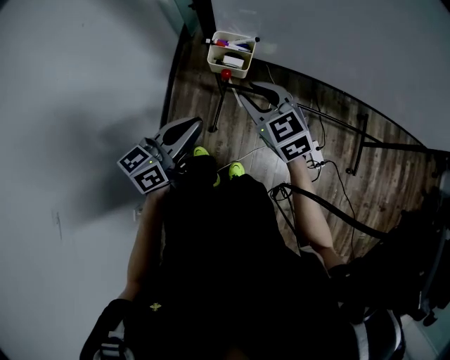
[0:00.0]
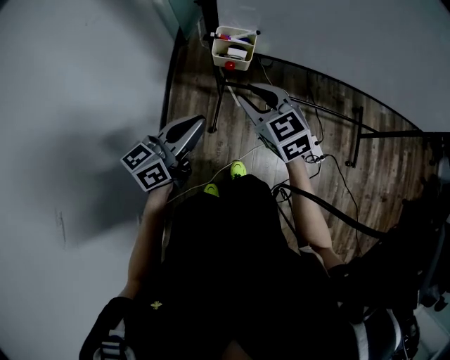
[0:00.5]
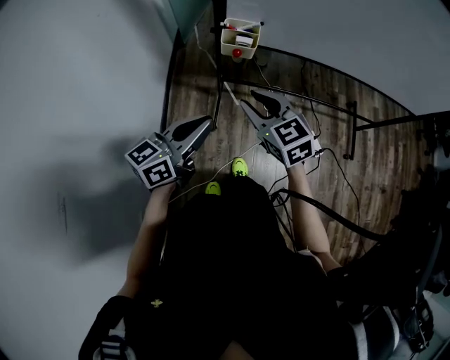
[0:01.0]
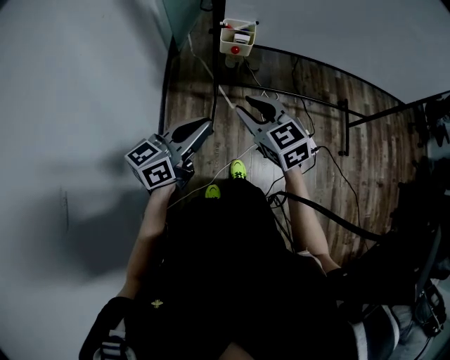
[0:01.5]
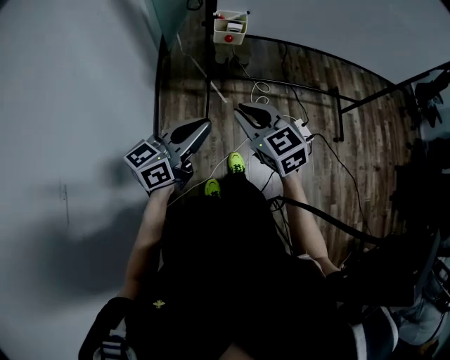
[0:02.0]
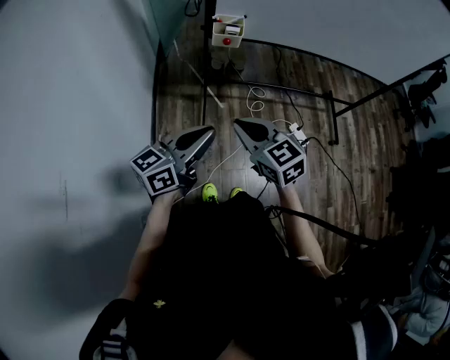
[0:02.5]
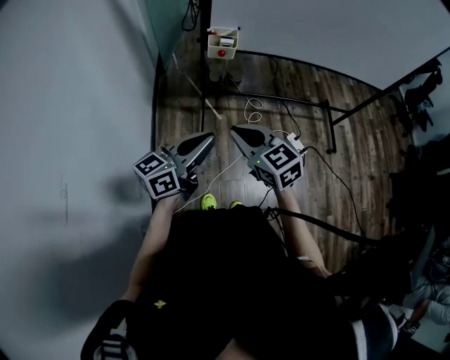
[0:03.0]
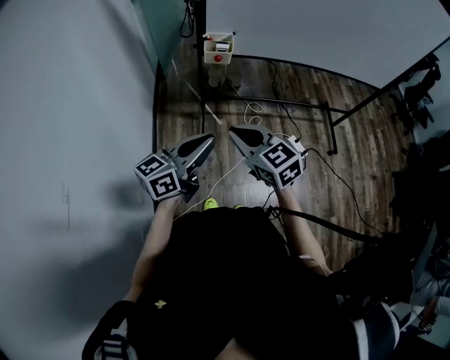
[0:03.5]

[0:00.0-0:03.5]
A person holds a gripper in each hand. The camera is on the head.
0.0 to 2.0 s: Both grippers travel together backward, some 25 cm.
2.0 to 3.5 s: The right gripper ends up approximately 5 cm from where it was.

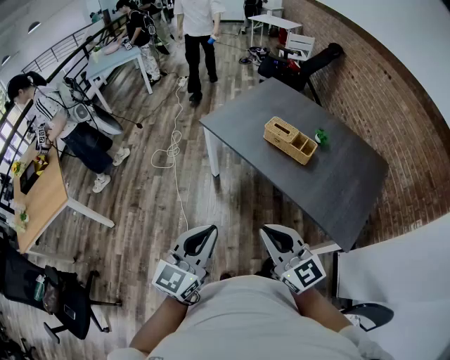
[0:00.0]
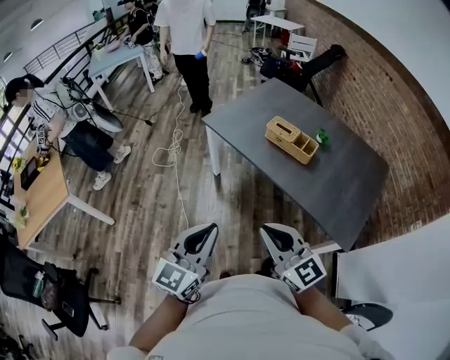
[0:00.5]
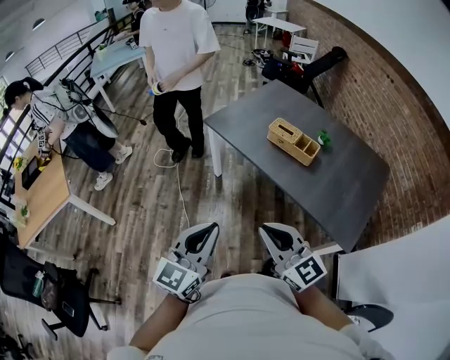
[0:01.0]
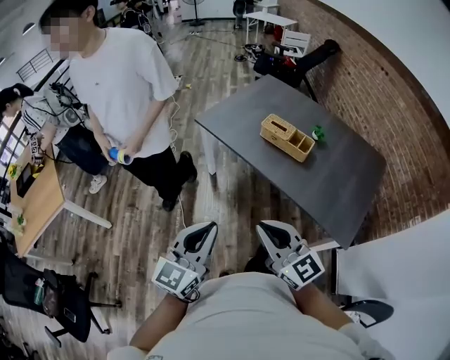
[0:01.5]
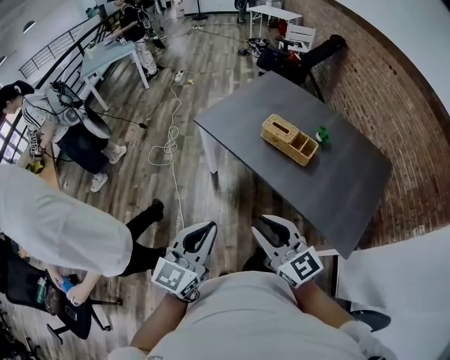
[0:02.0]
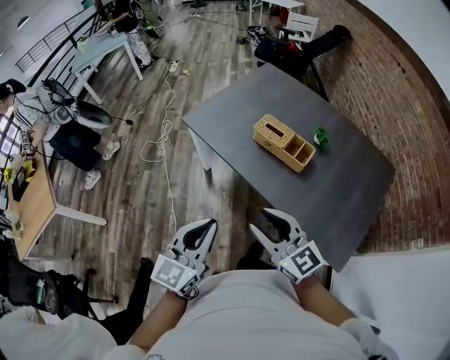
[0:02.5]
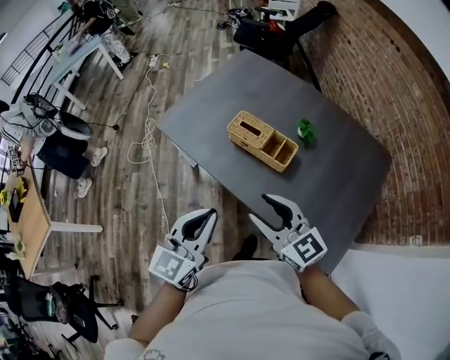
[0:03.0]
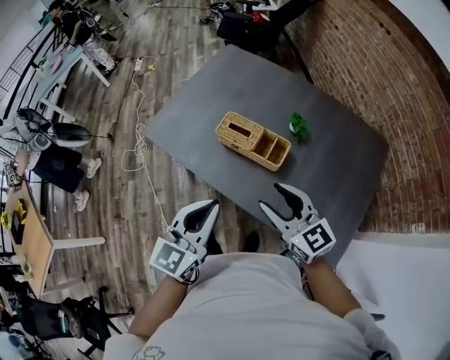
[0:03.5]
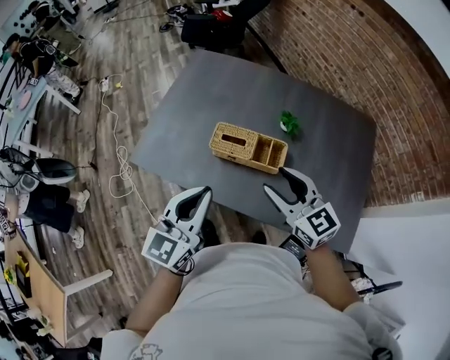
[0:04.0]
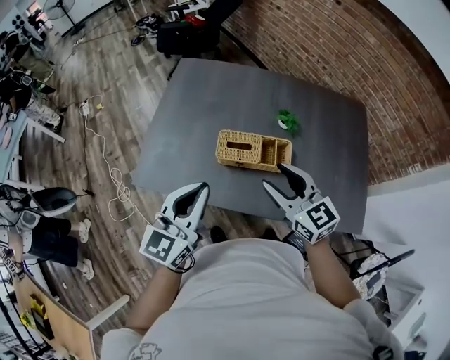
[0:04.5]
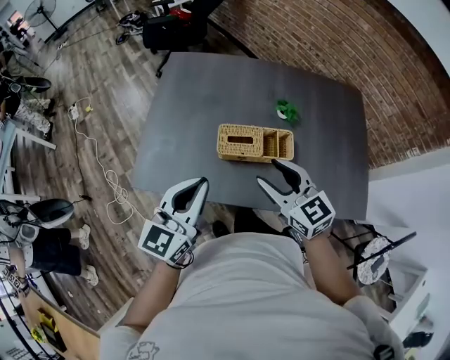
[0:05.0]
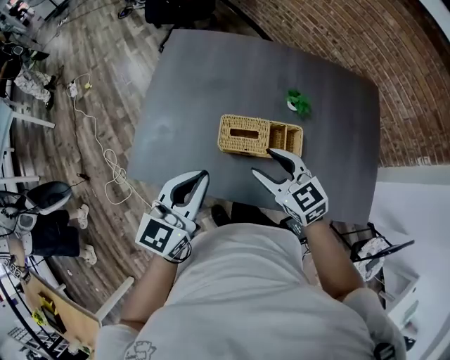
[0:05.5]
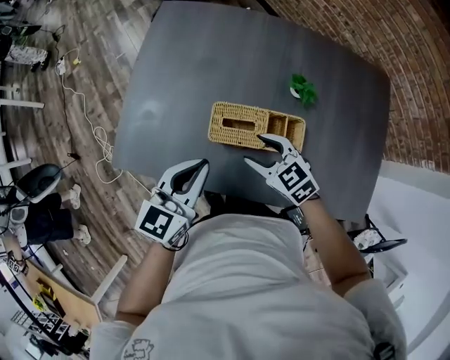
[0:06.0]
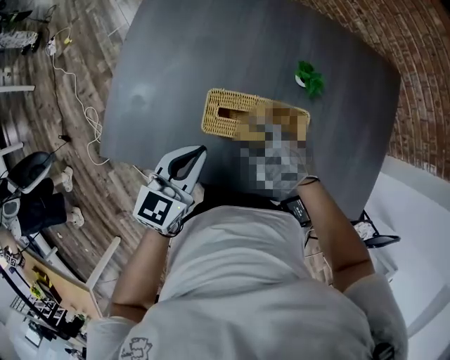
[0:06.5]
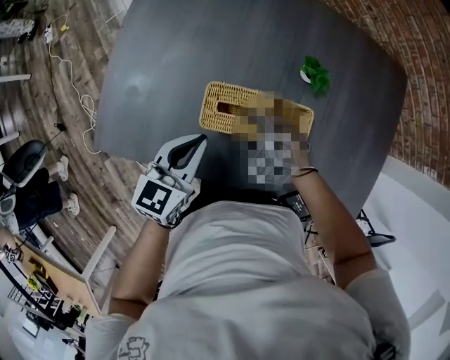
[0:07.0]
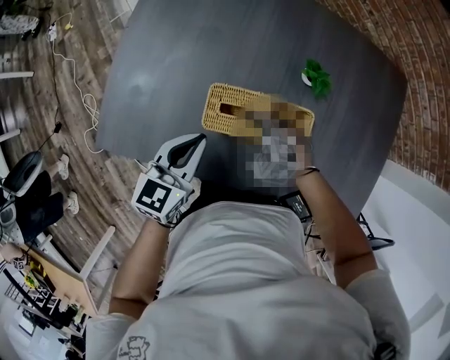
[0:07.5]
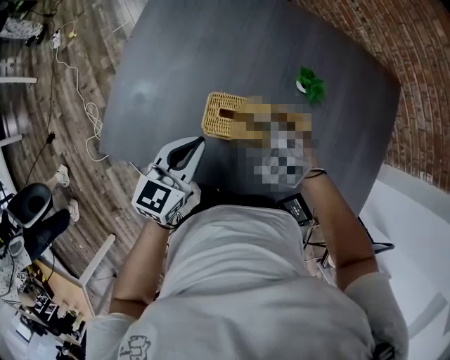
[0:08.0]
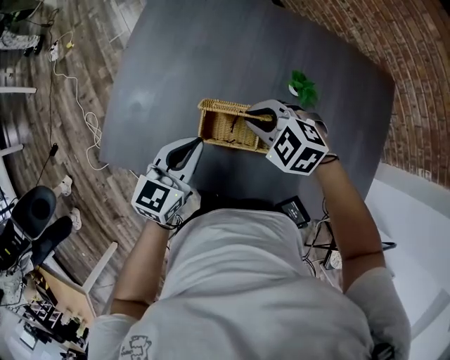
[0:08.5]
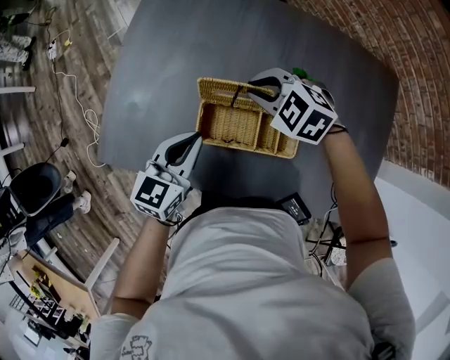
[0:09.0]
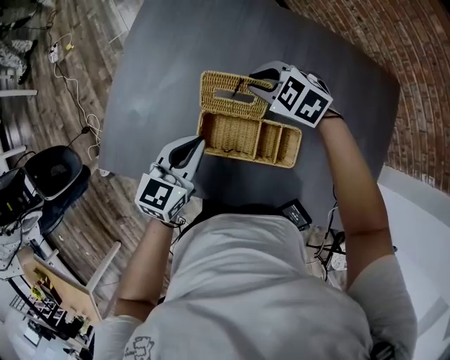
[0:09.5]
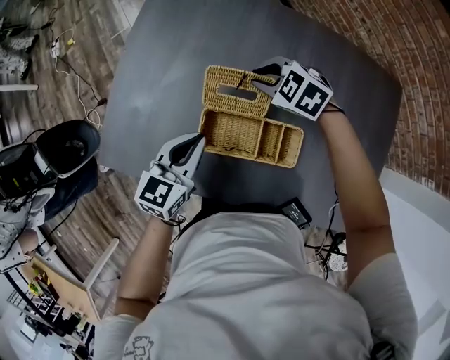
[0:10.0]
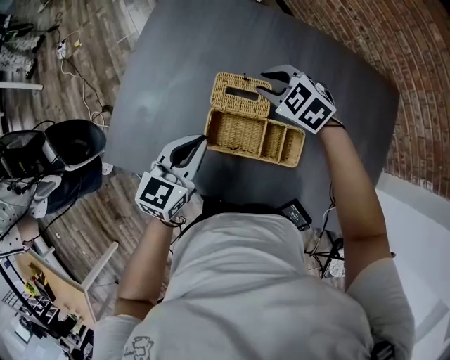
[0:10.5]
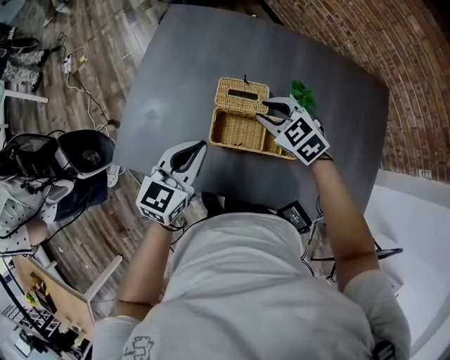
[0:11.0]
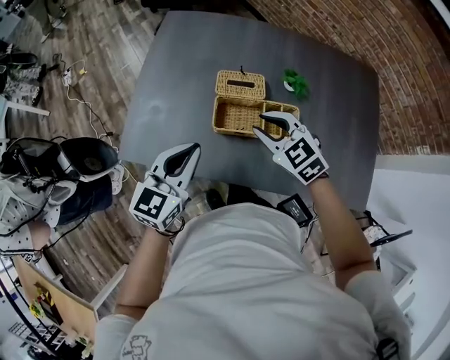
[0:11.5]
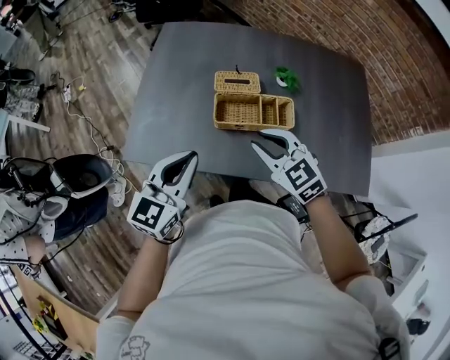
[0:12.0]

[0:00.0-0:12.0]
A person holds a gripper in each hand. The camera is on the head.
0.0 to 2.0 s: Both grippers move forward, roughly 5 cm. The right gripper opens.
2.0 to 4.0 s: The left gripper moves forward, about 35 cm, and rotates some 20 degrees; the right gripper travels forward and to the right by approximately 40 cm, rotates about 30 degrees, and opens its fingers.
4.0 to 6.0 s: The left gripper goes approximately 20 cm forward and downward, while the right gripper travels downward, forward and to the left by some 25 cm, and changes its angle by about 30 degrees.
6.0 to 8.0 s: The right gripper rotates approximately 30 degrees; the left gripper heads downward, covering approximately 5 cm.
8.0 to 10.0 s: The left gripper shifts by approximately 5 cm, while the right gripper is displaced forward and to the right by some 20 cm, and closes.
10.0 to 12.0 s: The left gripper is displaced backward, upward and to the left by roughly 25 cm. The right gripper moves backward and upward, roughly 30 cm, and rotates some 40 degrees.

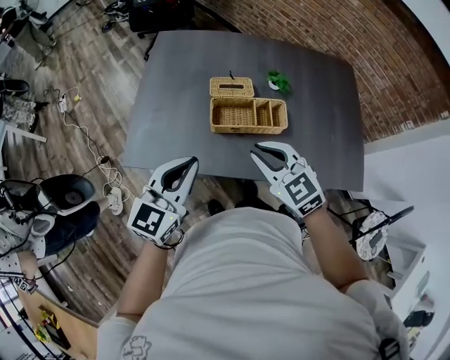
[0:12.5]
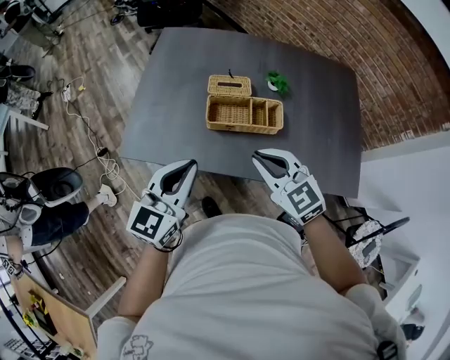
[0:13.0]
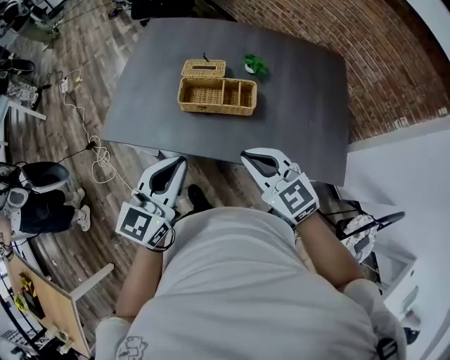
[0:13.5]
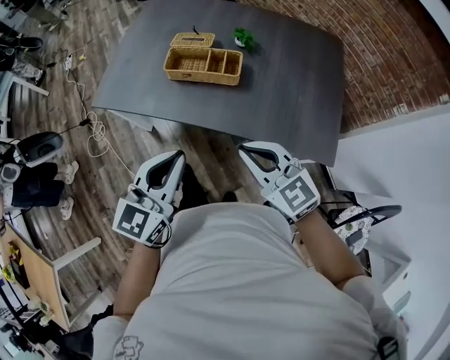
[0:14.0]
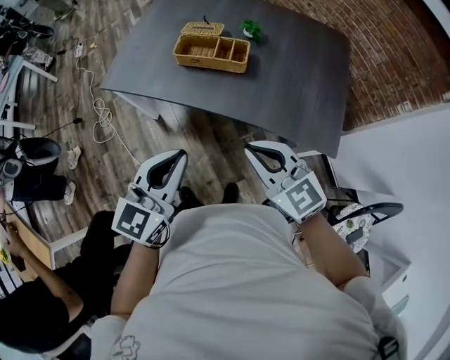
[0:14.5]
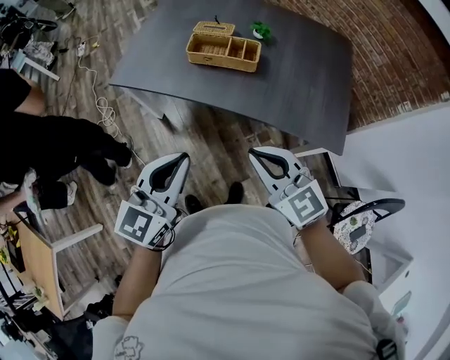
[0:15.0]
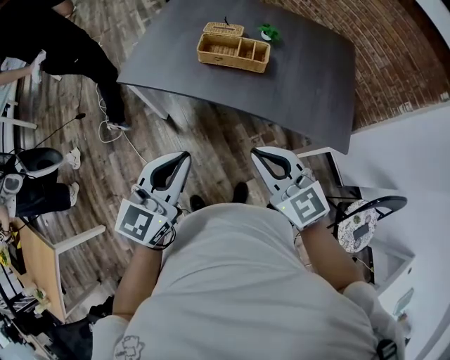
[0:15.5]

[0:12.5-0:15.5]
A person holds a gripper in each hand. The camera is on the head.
12.5 to 14.0 s: The grippers both shift backward and to the right by roughly 25 cm.
14.0 to 15.5 s: Both grippers move to the left and backward, about 15 cm.

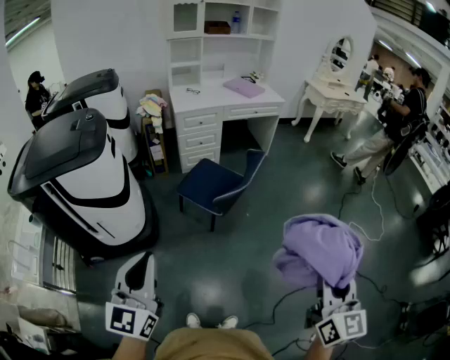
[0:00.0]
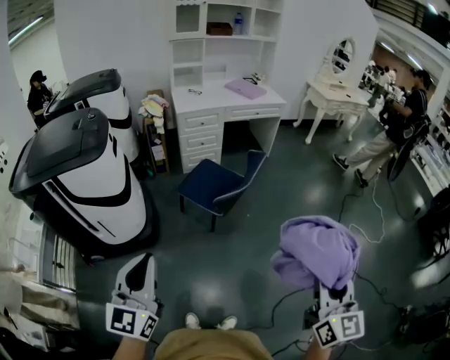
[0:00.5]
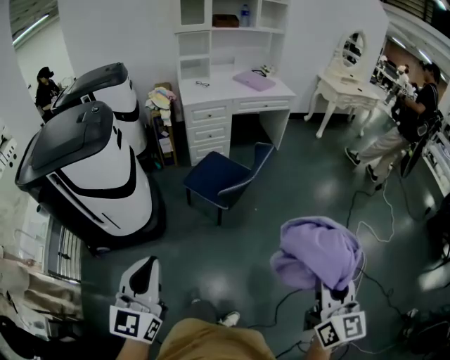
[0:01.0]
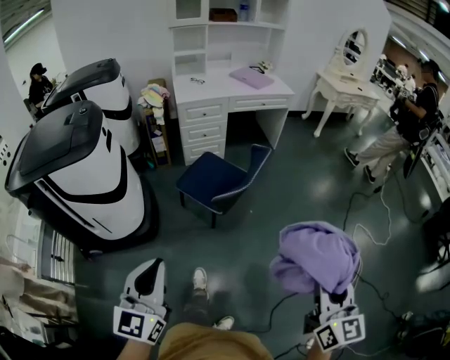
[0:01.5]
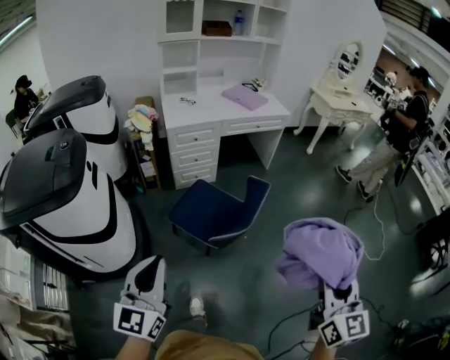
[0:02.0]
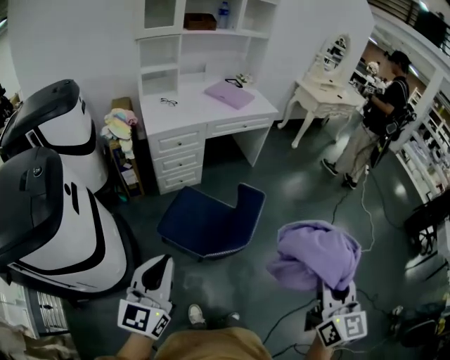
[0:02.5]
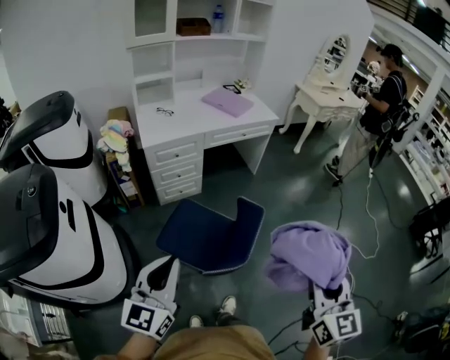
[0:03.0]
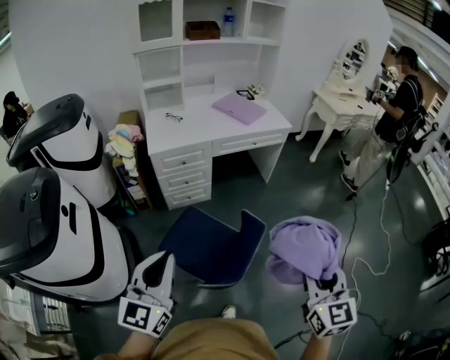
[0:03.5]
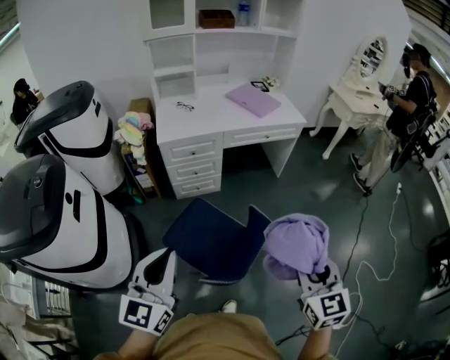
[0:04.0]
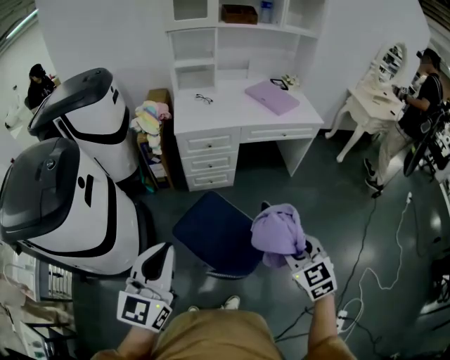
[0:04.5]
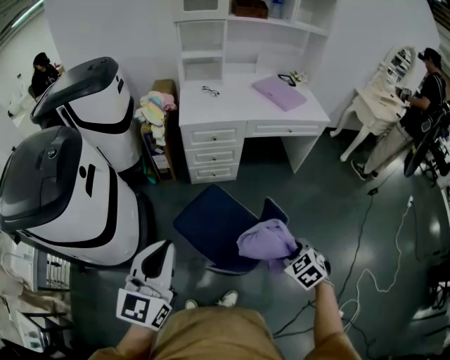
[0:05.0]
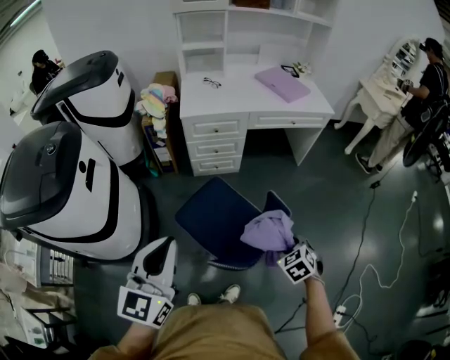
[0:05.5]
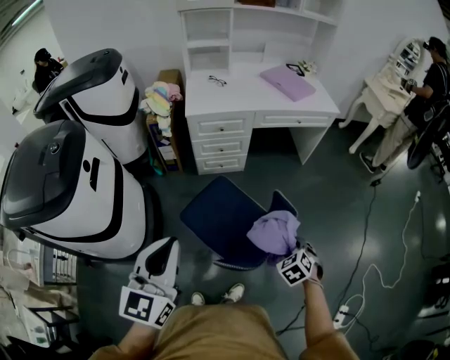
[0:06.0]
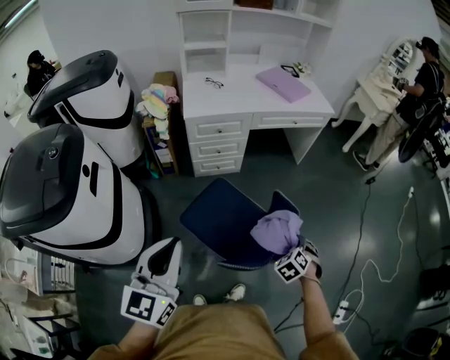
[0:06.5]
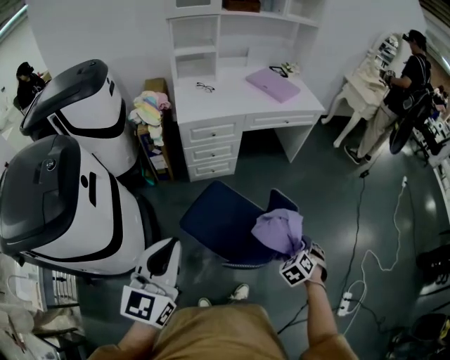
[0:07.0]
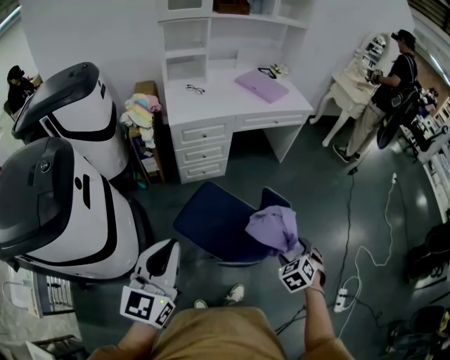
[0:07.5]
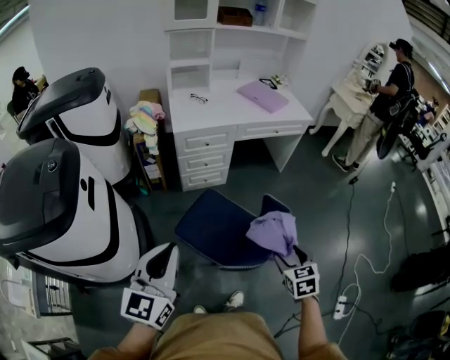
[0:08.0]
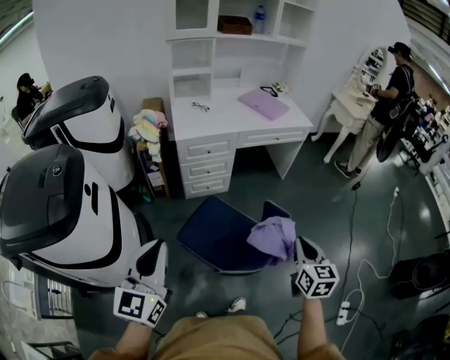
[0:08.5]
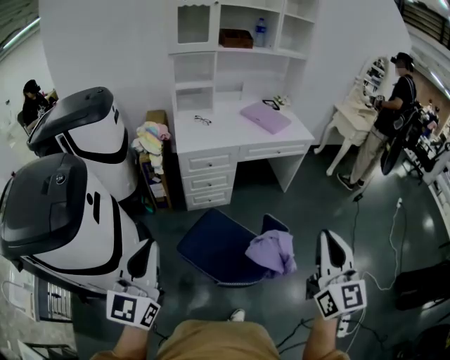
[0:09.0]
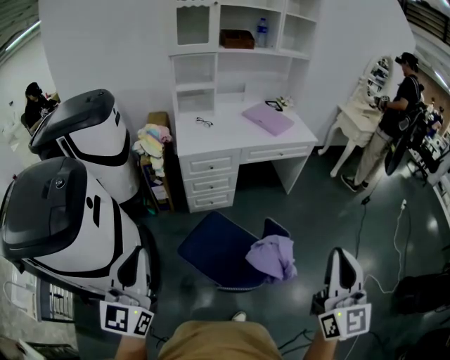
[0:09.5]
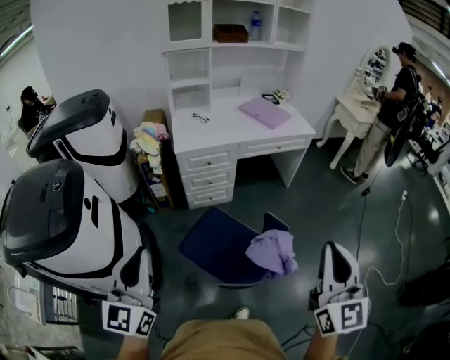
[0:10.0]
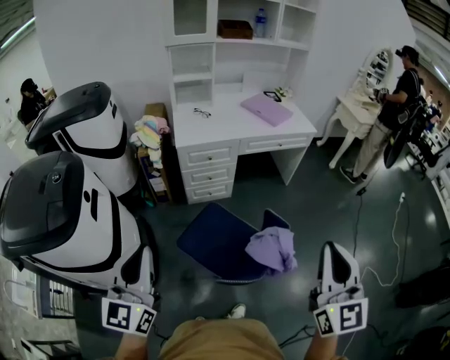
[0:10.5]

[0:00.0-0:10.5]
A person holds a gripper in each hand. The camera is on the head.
0.0 to 2.0 s: Both grippers move forward, roughly 25 cm.
2.0 to 4.0 s: Both grippers travel together forward, about 35 cm. The right gripper changes its angle by approximately 20 degrees.
4.0 to 6.5 s: The right gripper is displaced downward by about 30 cm, tilts its fingers about 40 degrees downward, and opens up. Meanwhile the left gripper heads to the left, covering approximately 10 cm.
6.5 to 8.5 s: The right gripper heads upward, covering about 20 cm, tilts its fingers about 40 degrees upward, and closes its fingers; the left gripper shifts roughly 5 cm to the left.
8.5 to 10.5 s: The right gripper travels upward by roughly 20 cm, and swivels some 30 degrees.
